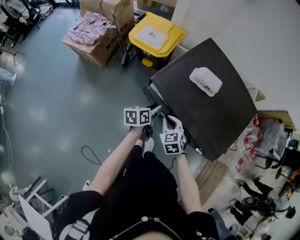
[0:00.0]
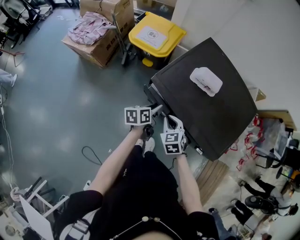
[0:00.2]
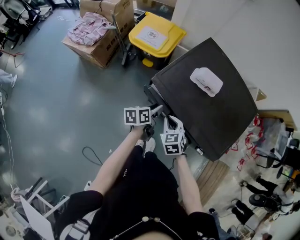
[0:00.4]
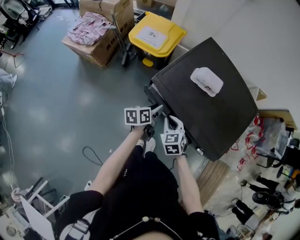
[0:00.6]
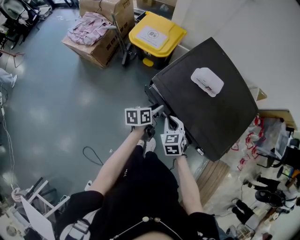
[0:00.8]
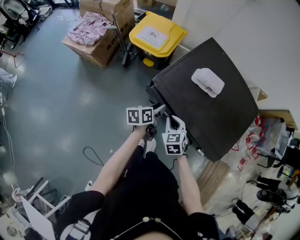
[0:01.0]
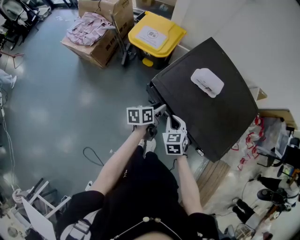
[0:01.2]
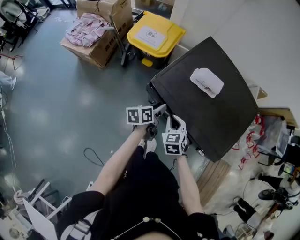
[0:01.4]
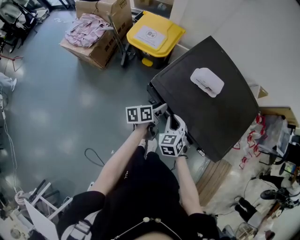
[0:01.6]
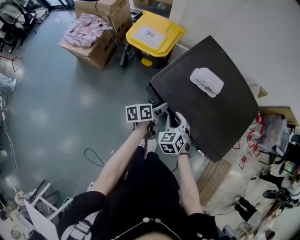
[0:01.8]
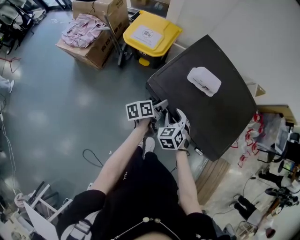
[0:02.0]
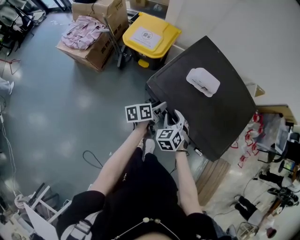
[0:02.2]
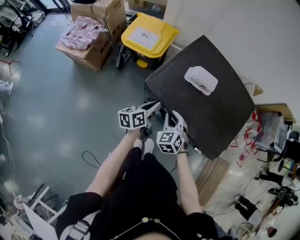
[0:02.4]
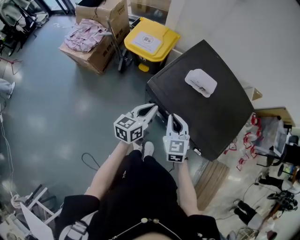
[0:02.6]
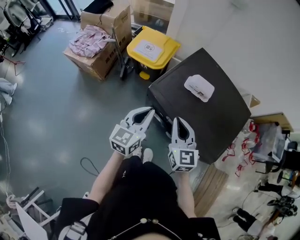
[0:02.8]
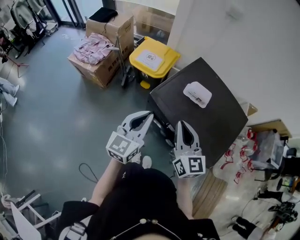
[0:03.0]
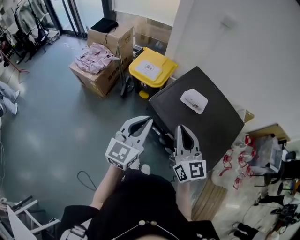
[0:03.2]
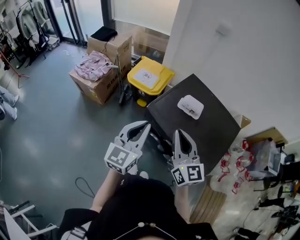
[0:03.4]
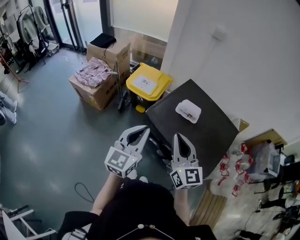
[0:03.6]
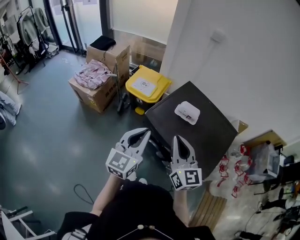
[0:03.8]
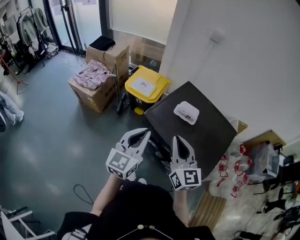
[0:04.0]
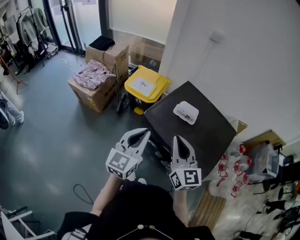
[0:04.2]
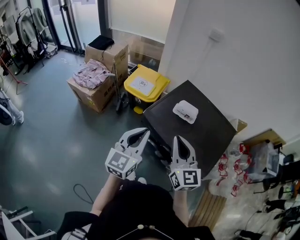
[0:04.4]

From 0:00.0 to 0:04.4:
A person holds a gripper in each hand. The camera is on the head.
From 0:00.0 to 0:01.4: The grippers move only a little.
From 0:01.4 to 0:03.0: The grippers both shift upward by approximately 25 cm. The left gripper twists about 50 degrees clockwise, seen from behind, and closes up. The right gripper tilts its fingers some 40 degrees upward, and opens, then closes again.
From 0:03.0 to 0:04.4: Both grippers travel together upward, roughly 5 cm.

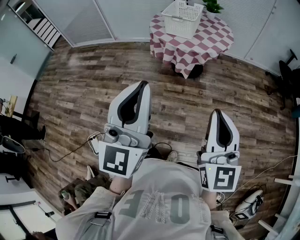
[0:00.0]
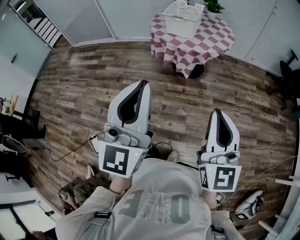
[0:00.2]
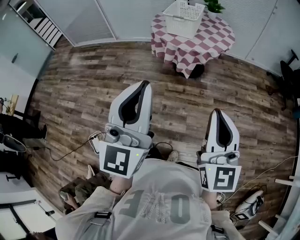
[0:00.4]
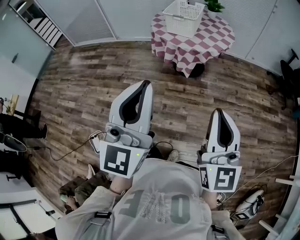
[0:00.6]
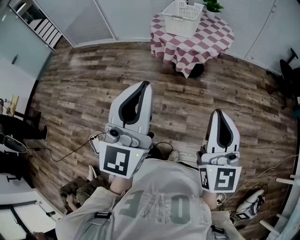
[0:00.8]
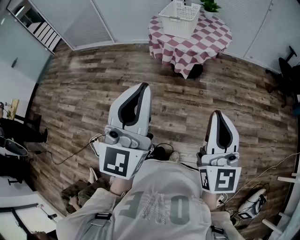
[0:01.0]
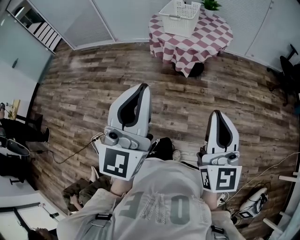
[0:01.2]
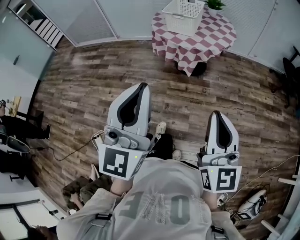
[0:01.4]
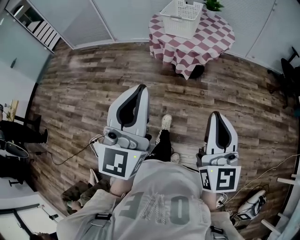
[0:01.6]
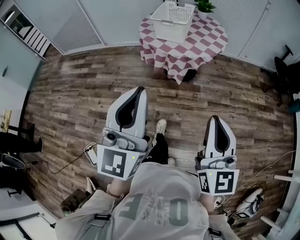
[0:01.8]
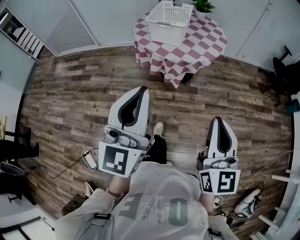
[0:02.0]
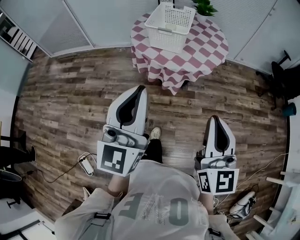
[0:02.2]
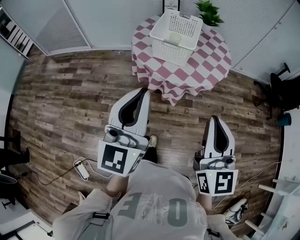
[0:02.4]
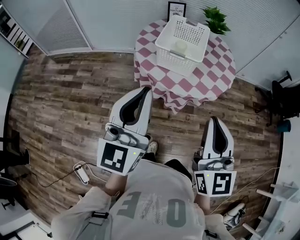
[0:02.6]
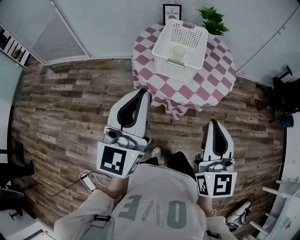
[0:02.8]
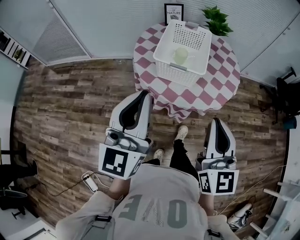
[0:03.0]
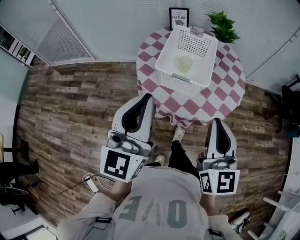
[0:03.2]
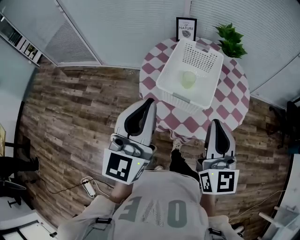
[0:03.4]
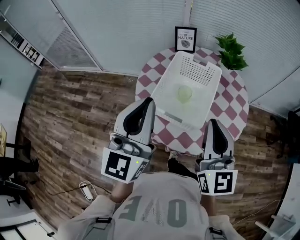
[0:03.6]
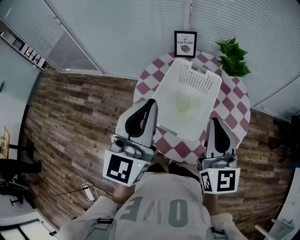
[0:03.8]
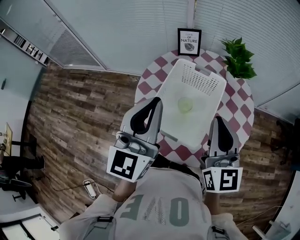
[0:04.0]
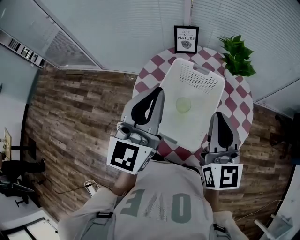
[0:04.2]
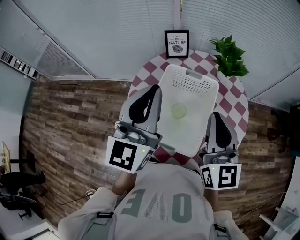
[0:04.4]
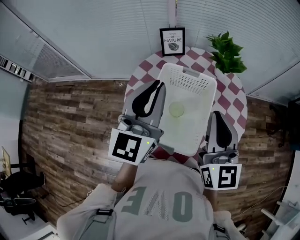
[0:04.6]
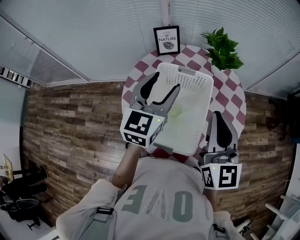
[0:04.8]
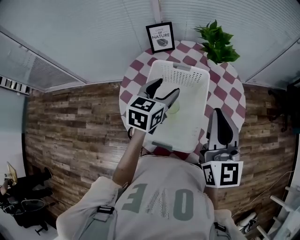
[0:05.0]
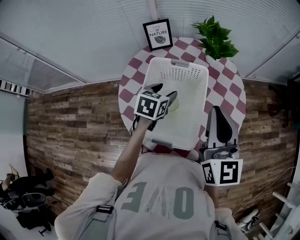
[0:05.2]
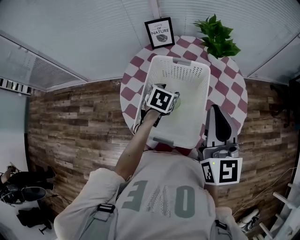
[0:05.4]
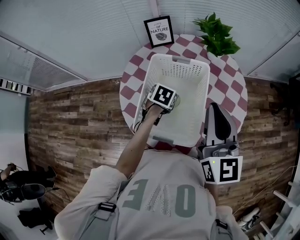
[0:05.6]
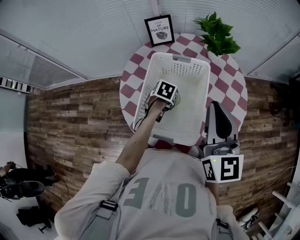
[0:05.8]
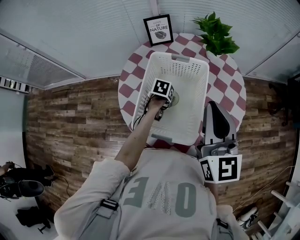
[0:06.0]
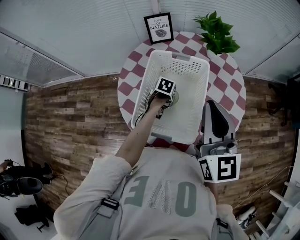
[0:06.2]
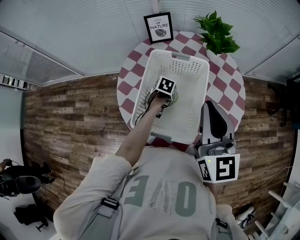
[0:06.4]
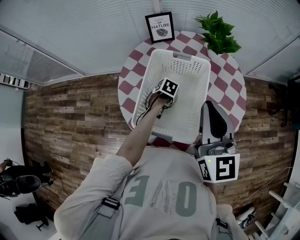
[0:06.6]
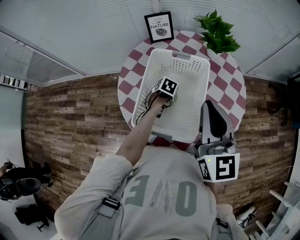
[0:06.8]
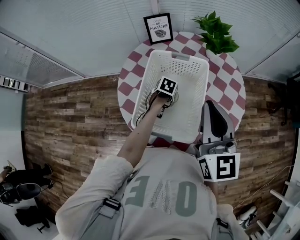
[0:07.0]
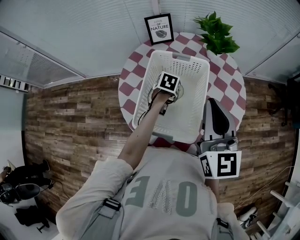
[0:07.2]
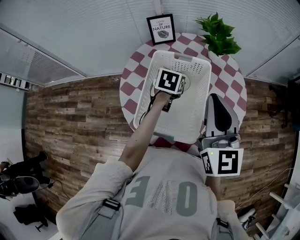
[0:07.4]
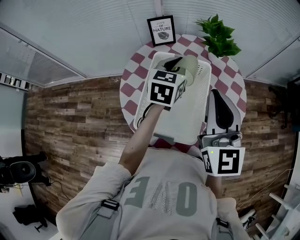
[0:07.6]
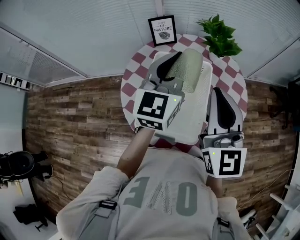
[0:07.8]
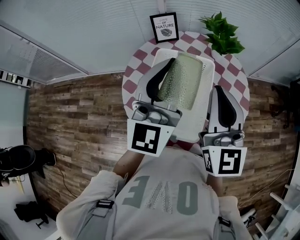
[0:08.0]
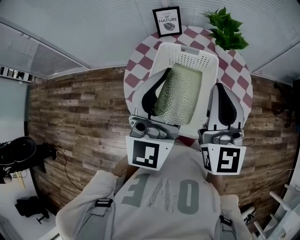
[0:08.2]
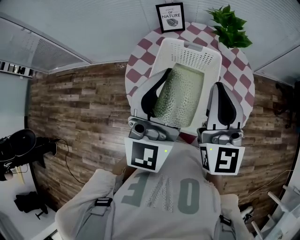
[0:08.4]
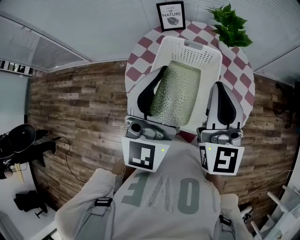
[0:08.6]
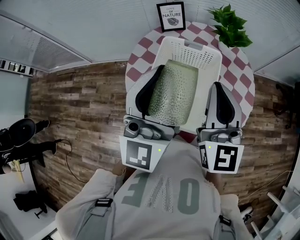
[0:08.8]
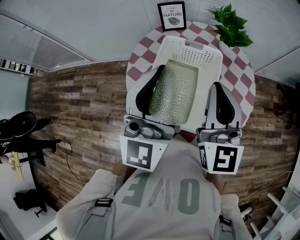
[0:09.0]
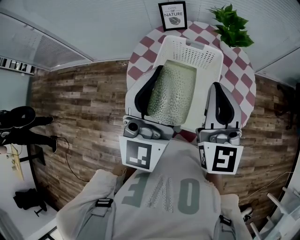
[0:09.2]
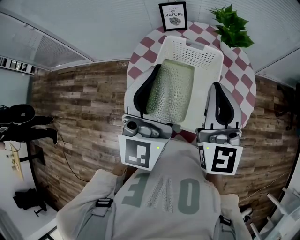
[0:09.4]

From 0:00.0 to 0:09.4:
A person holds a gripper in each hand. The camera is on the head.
From 0:00.0 to 0:01.6: The grippers move only a little.
From 0:01.6 to 0:03.2: The two grippers travel together, forward, approximately 50 cm.
From 0:03.2 to 0:04.8: Both grippers travel together forward, roughly 35 cm. The left gripper swivels approximately 20 degrees, and opens.
From 0:04.8 to 0:06.2: The left gripper travels downward by roughly 35 cm, and points its fingers roughly 60 degrees further downward.
From 0:06.2 to 0:07.8: The left gripper shifts roughly 40 cm upward, points its fingers approximately 70 degrees further upward, and closes its fingers.
From 0:07.8 to 0:09.4: The left gripper goes about 15 cm backward, to the left and upward, and changes its angle by approximately 20 degrees.

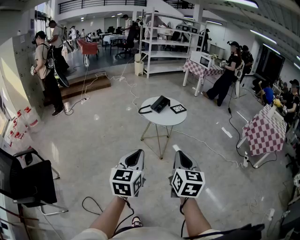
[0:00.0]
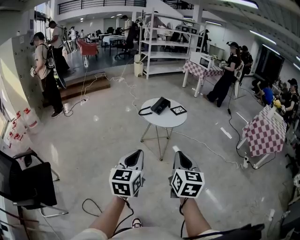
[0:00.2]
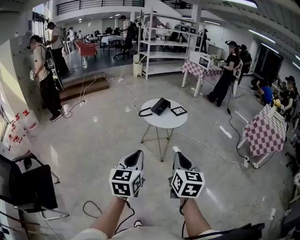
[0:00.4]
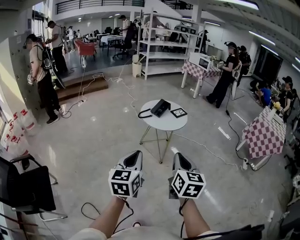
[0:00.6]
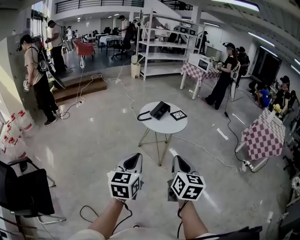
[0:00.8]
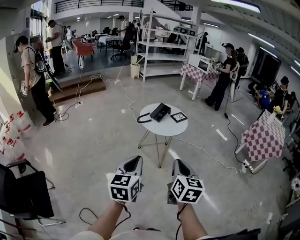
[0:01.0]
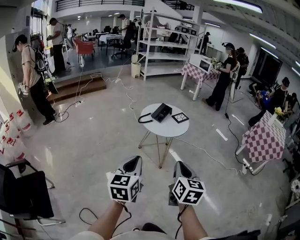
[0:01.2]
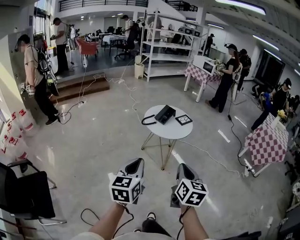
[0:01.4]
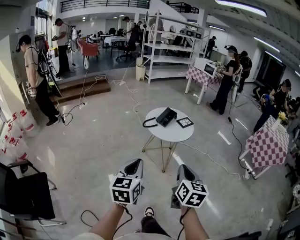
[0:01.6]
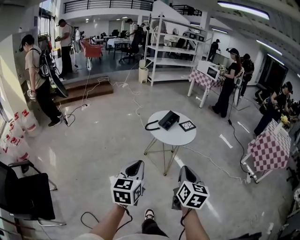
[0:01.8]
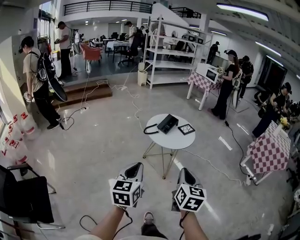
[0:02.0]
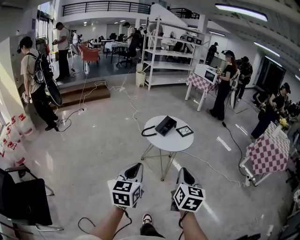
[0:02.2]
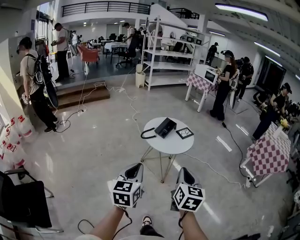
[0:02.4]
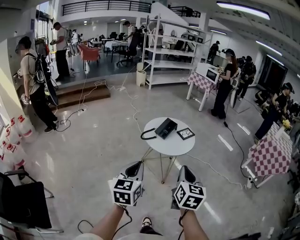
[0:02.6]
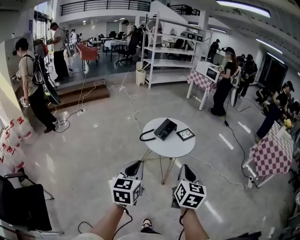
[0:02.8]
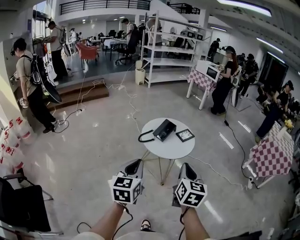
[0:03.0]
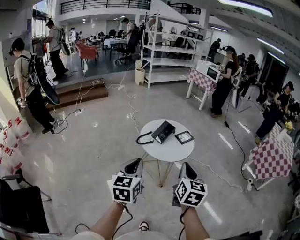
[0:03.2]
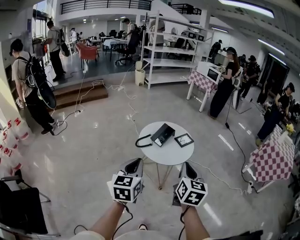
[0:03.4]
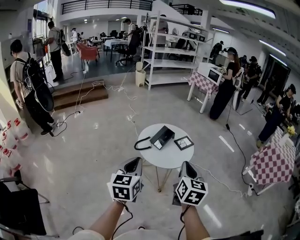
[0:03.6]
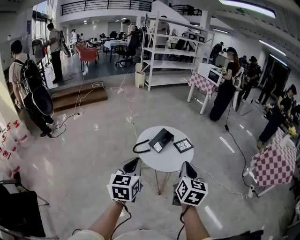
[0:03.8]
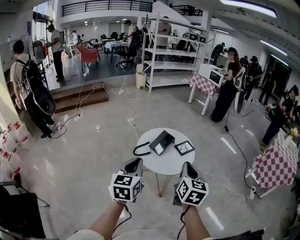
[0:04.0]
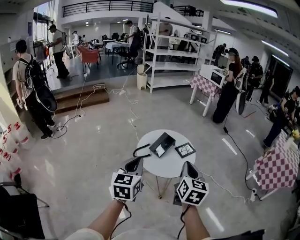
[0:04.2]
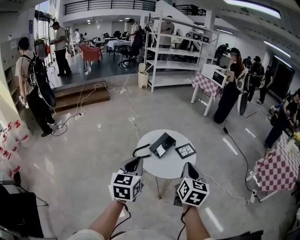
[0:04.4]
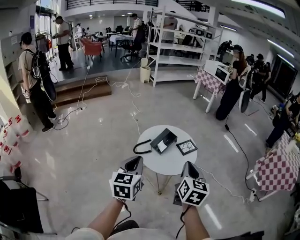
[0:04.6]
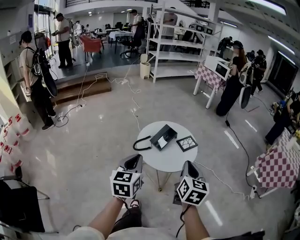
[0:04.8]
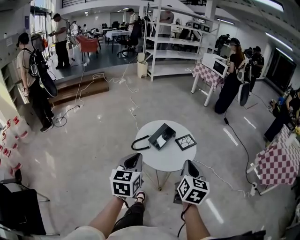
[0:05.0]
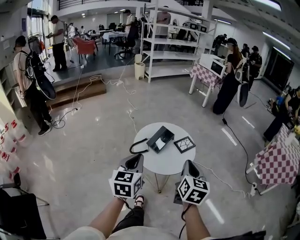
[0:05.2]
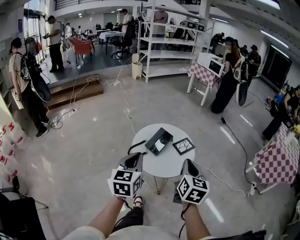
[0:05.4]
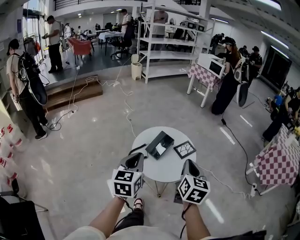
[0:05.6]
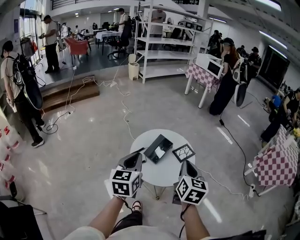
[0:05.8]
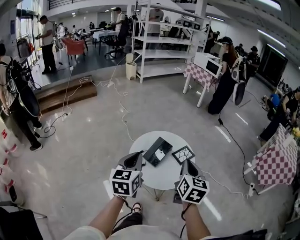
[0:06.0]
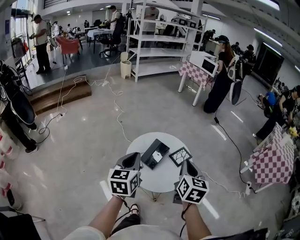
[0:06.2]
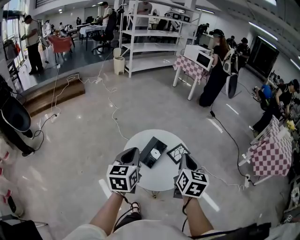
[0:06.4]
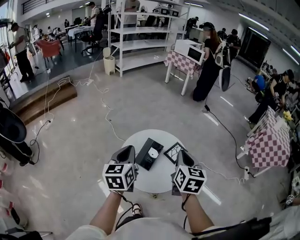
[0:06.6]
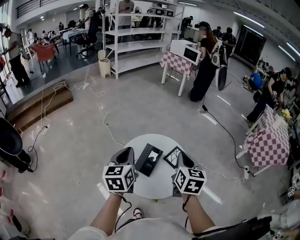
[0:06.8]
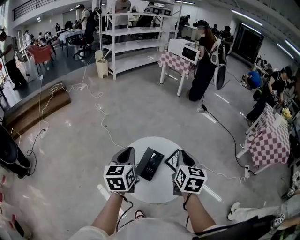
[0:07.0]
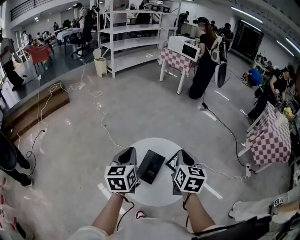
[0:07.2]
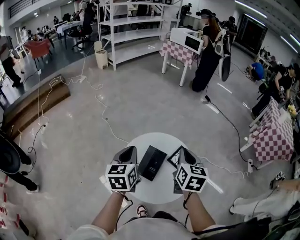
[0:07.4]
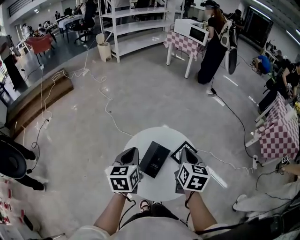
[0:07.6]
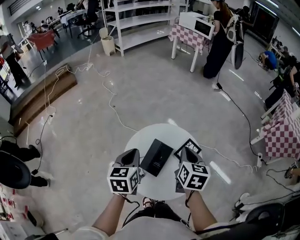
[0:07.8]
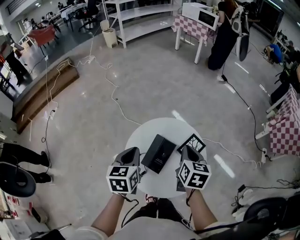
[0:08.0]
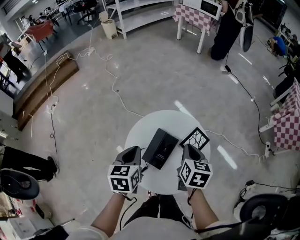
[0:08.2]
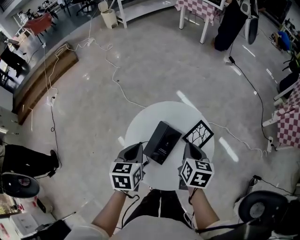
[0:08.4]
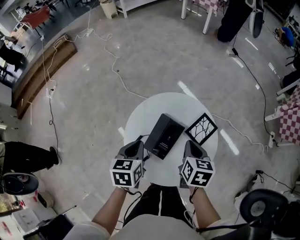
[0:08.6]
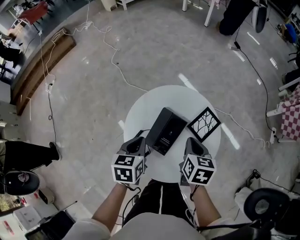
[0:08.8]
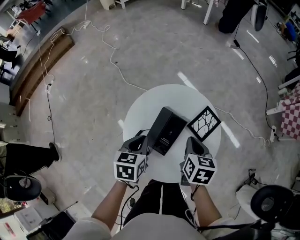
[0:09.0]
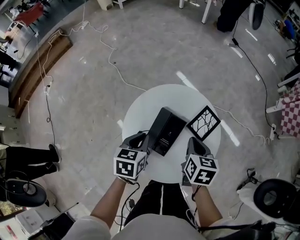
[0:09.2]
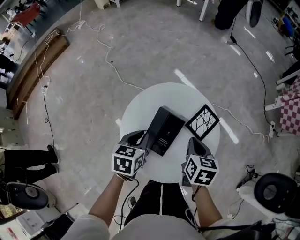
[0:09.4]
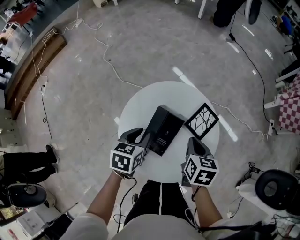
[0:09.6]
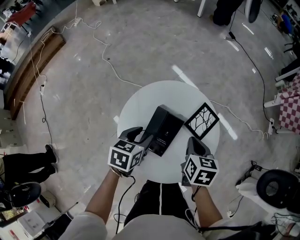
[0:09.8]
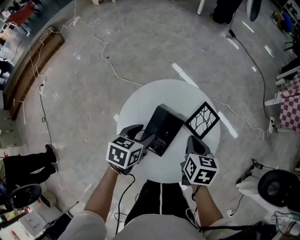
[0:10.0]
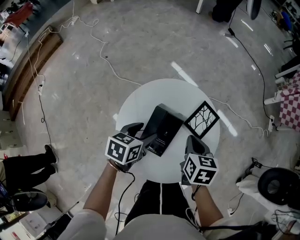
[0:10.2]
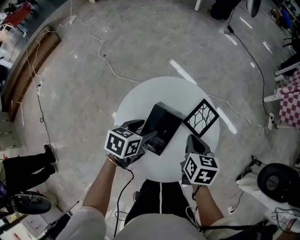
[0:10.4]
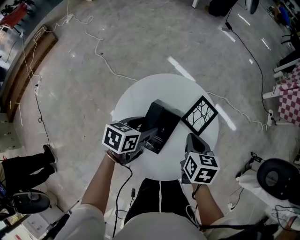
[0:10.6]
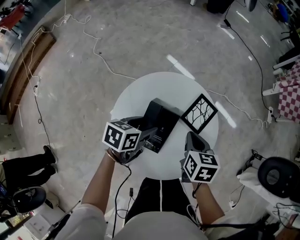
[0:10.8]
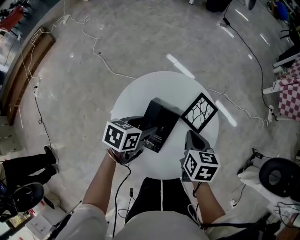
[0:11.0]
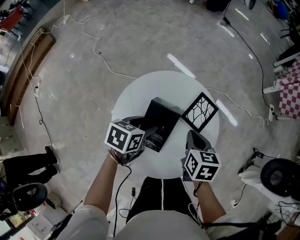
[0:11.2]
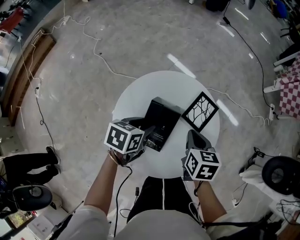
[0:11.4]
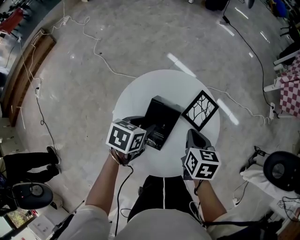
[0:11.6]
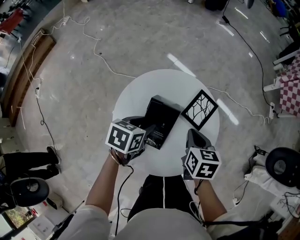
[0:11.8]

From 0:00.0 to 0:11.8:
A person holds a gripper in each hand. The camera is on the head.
From 0:00.0 to 0:01.4: The right gripper heads forward, covering about 10 cm; the left gripper moves forward and to the left, about 10 cm.
From 0:01.4 to 0:03.0: The grippers both shift forward by roughly 15 cm.
From 0:03.0 to 0:04.4: Both grippers travel together forward, roughly 15 cm.
From 0:04.4 to 0:06.0: Both grippers move forward, approximately 10 cm.
From 0:06.0 to 0:07.4: Both grippers travel together forward, about 15 cm.
From 0:07.4 to 0:08.8: Both grippers travel together downward, roughly 20 cm. The left gripper rotates about 30 degrees. The right gripper swivels some 20 degrees.
From 0:08.8 to 0:10.4: The left gripper goes roughly 10 cm downward and forward, swivels roughly 30 degrees, and opens.
From 0:10.4 to 0:11.8: The grippers move only a little.
